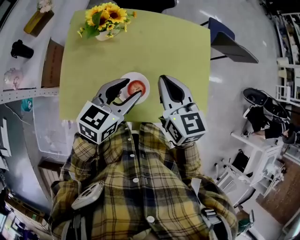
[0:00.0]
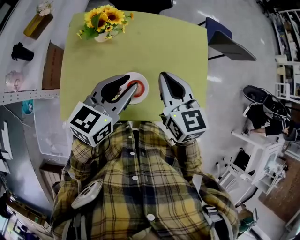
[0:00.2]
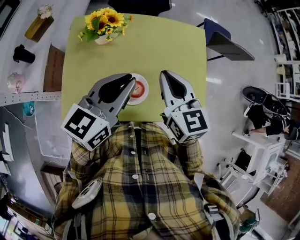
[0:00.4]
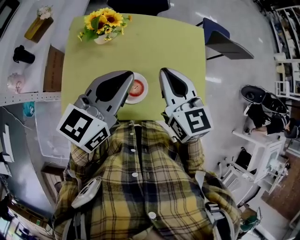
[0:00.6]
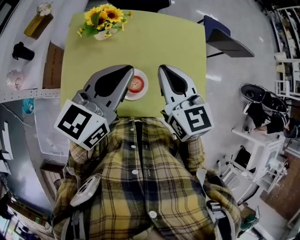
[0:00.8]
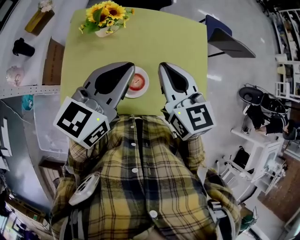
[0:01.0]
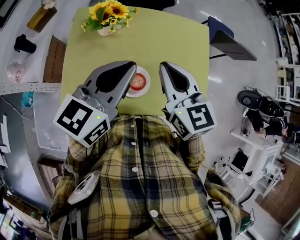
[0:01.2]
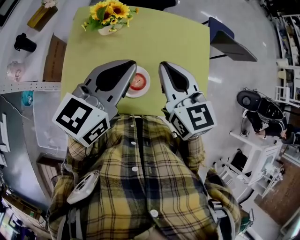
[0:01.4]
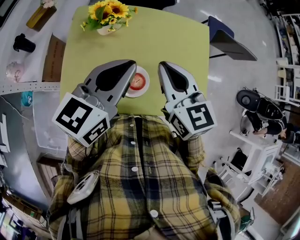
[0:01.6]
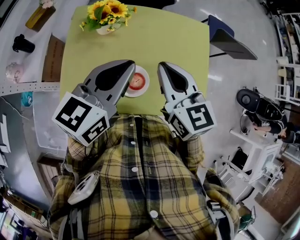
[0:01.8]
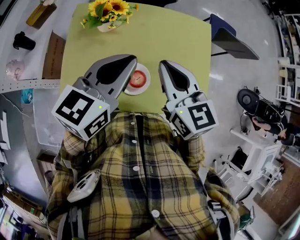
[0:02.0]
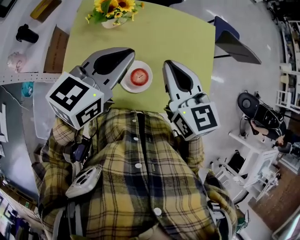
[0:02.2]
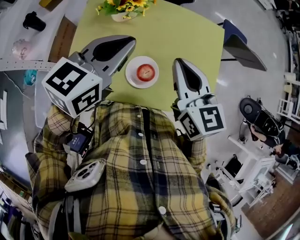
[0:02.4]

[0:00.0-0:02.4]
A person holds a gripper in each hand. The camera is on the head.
0:00.0 to 0:01.2: The left gripper shifts some 15 cm upward, and closes up. The right gripper shifts roughly 5 cm upward.
0:01.2 to 0:02.4: The left gripper moves about 5 cm.

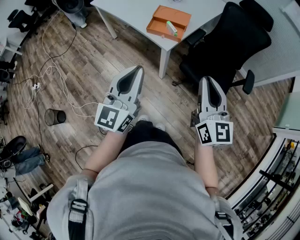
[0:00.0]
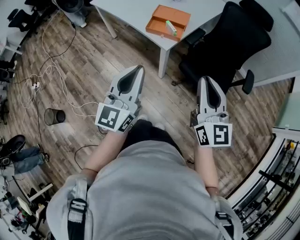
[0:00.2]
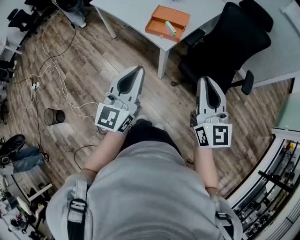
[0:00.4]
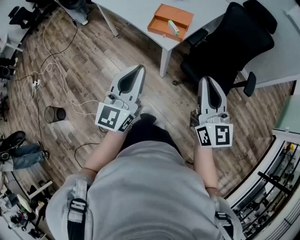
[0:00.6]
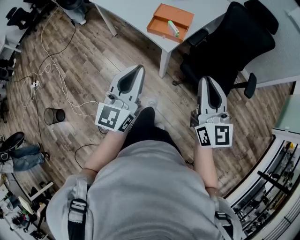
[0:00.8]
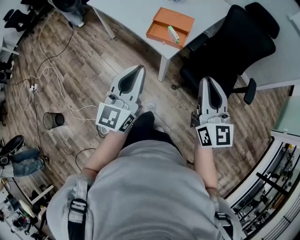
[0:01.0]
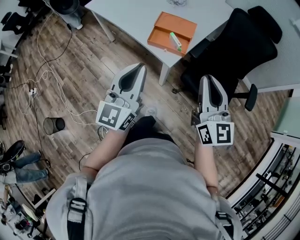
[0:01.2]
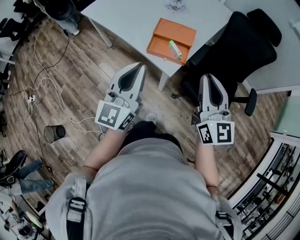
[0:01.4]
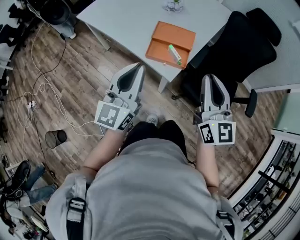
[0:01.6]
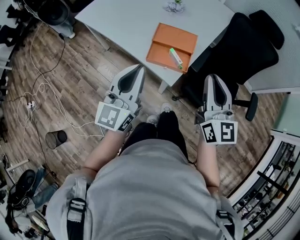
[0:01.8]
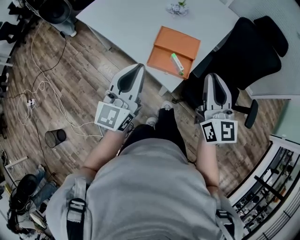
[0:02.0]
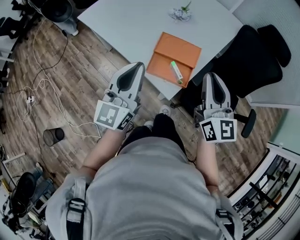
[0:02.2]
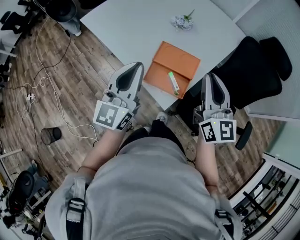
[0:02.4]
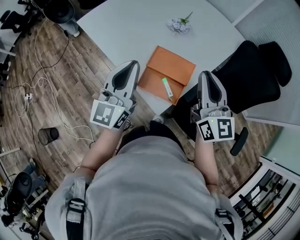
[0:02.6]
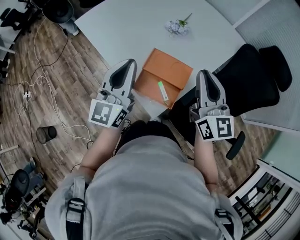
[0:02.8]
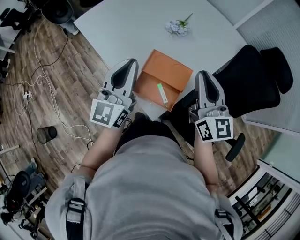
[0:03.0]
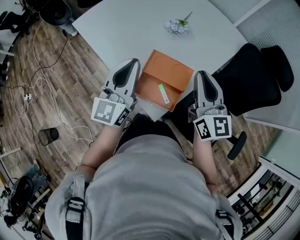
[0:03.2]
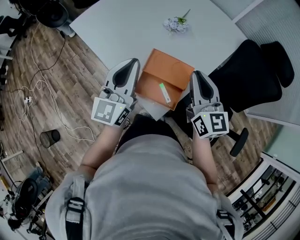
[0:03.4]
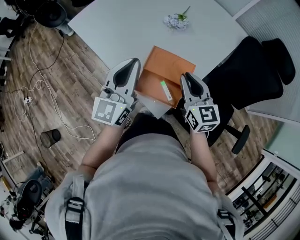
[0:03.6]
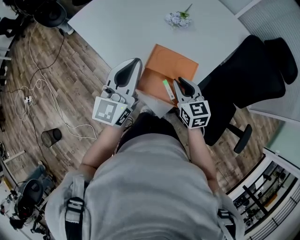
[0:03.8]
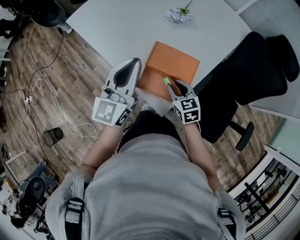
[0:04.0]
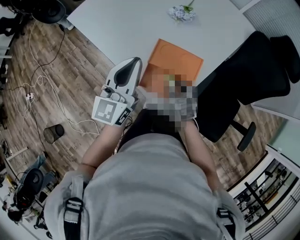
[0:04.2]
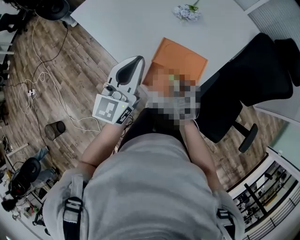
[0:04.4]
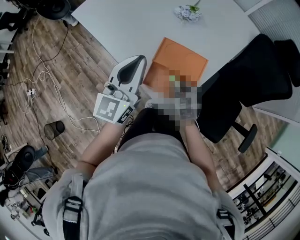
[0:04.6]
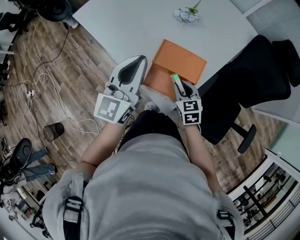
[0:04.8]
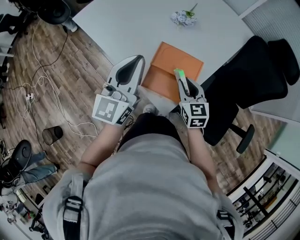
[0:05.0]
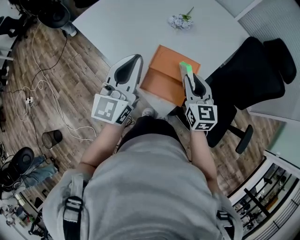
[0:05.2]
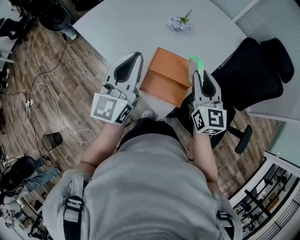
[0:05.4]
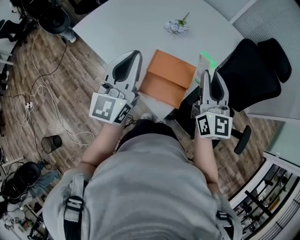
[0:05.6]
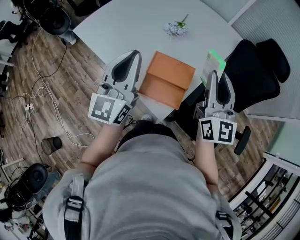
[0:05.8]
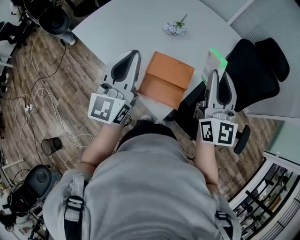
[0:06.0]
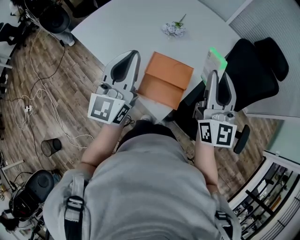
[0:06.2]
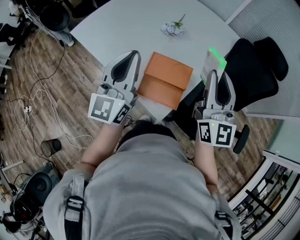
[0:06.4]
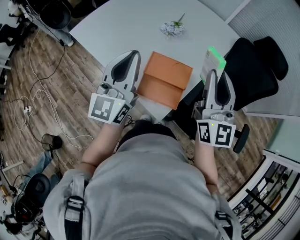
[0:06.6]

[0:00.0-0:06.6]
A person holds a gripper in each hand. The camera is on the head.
0:00.0 to 0:01.6: Both grippers travel together forward, approximately 30 cm.
0:01.6 to 0:03.2: Both grippers travel together forward, about 35 cm.
0:03.2 to 0:05.0: The right gripper heads downward, covering about 20 cm, and changes its angle by roughly 30 degrees.
0:05.0 to 0:06.6: The right gripper shifts about 30 cm upward, and angles its fingers upward, by approximately 40 degrees, while the left gripper shifts roughly 10 cm upward.

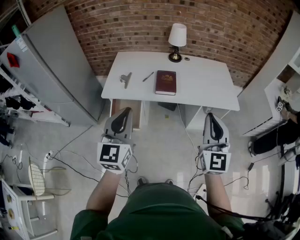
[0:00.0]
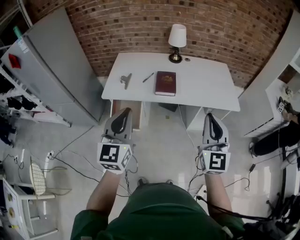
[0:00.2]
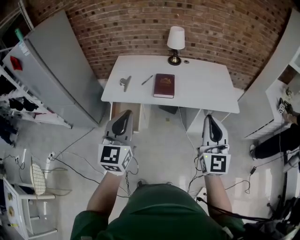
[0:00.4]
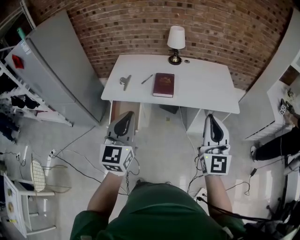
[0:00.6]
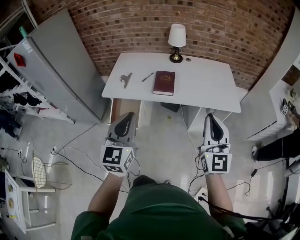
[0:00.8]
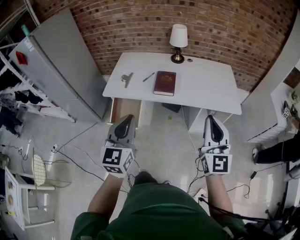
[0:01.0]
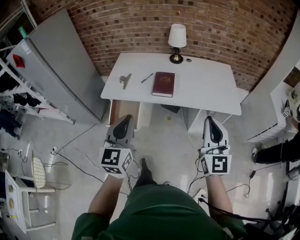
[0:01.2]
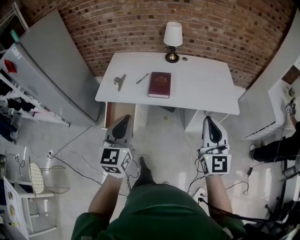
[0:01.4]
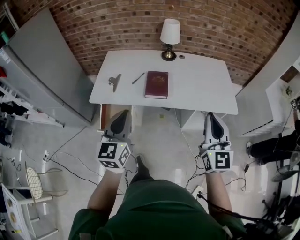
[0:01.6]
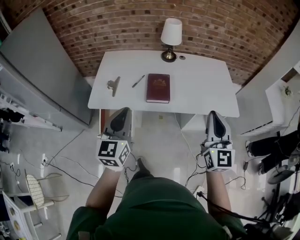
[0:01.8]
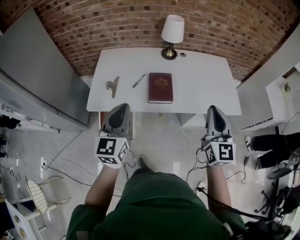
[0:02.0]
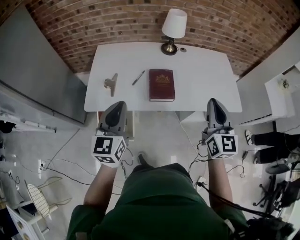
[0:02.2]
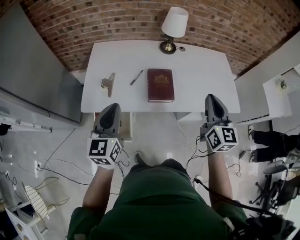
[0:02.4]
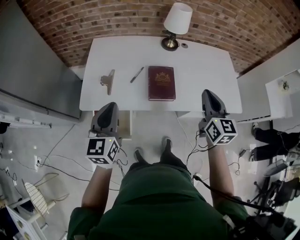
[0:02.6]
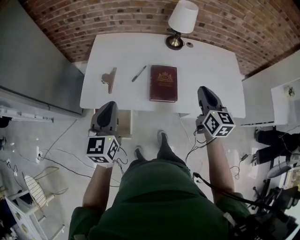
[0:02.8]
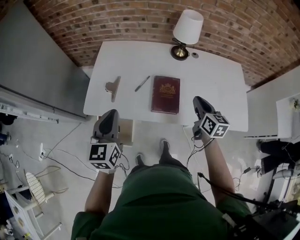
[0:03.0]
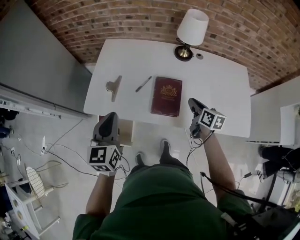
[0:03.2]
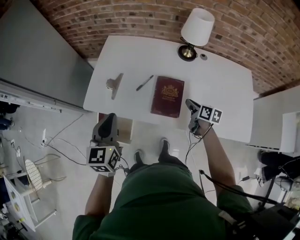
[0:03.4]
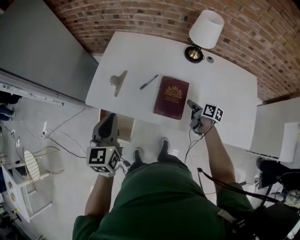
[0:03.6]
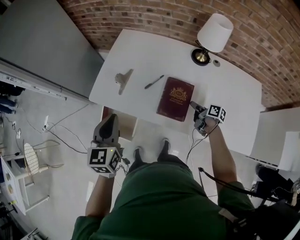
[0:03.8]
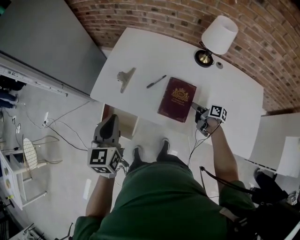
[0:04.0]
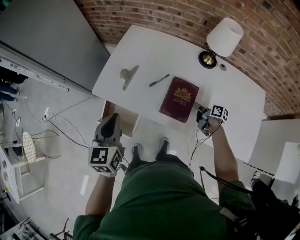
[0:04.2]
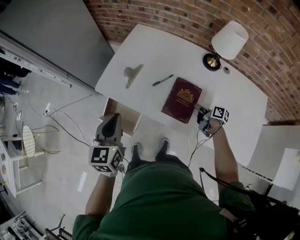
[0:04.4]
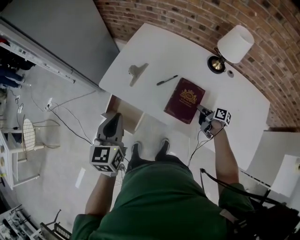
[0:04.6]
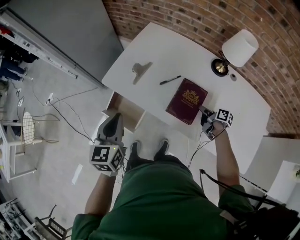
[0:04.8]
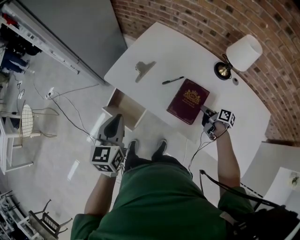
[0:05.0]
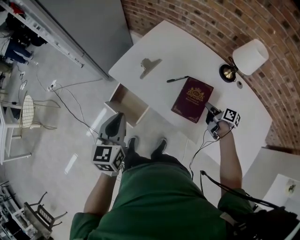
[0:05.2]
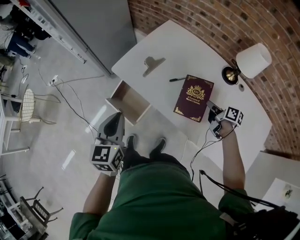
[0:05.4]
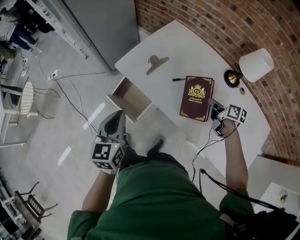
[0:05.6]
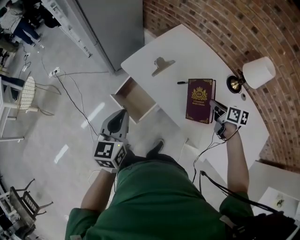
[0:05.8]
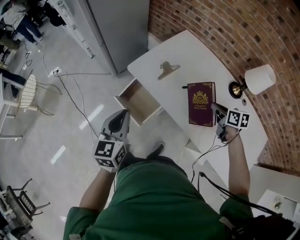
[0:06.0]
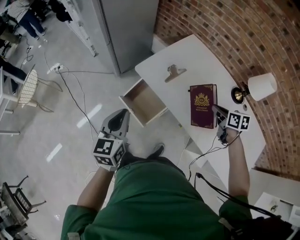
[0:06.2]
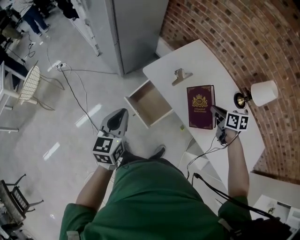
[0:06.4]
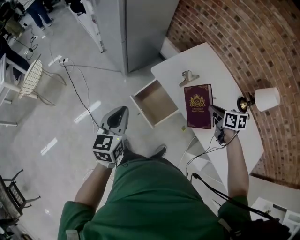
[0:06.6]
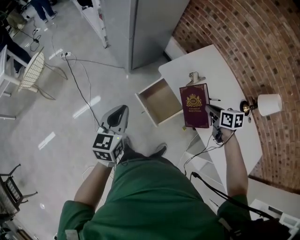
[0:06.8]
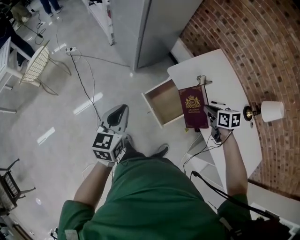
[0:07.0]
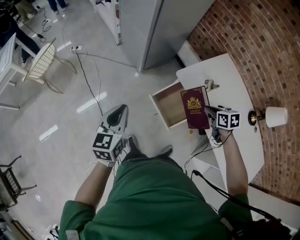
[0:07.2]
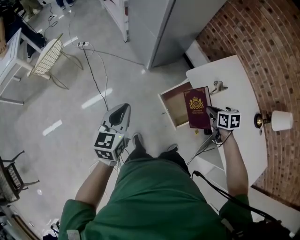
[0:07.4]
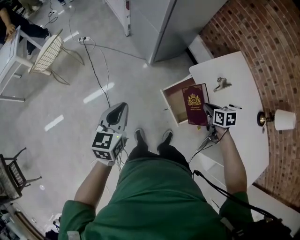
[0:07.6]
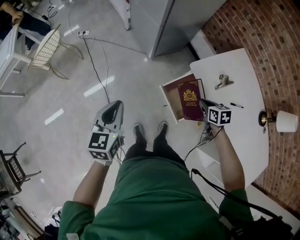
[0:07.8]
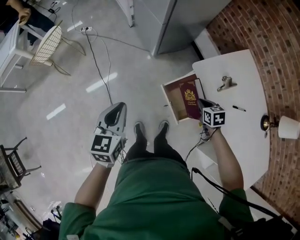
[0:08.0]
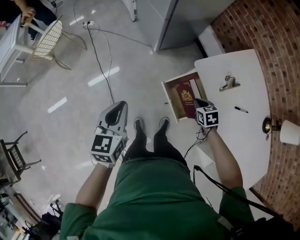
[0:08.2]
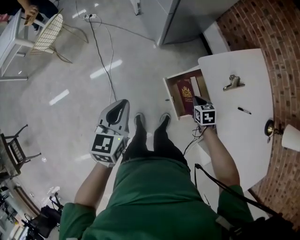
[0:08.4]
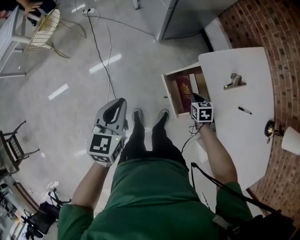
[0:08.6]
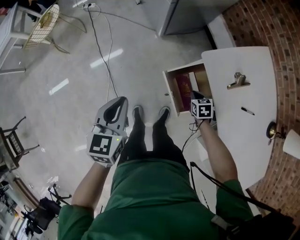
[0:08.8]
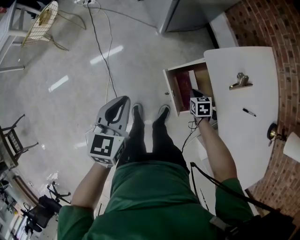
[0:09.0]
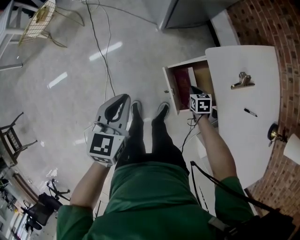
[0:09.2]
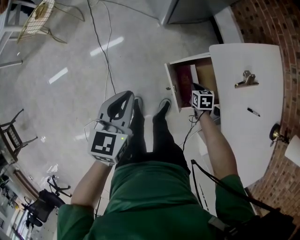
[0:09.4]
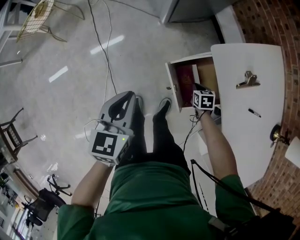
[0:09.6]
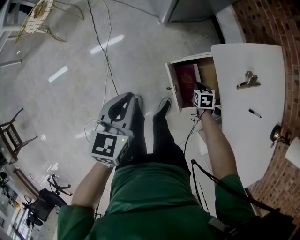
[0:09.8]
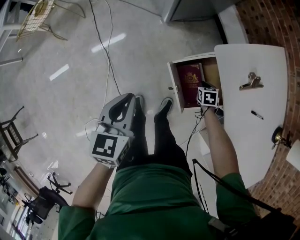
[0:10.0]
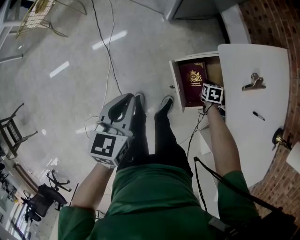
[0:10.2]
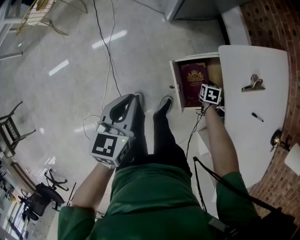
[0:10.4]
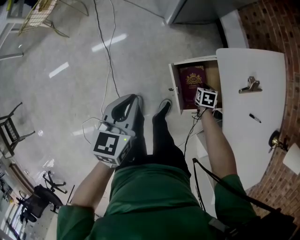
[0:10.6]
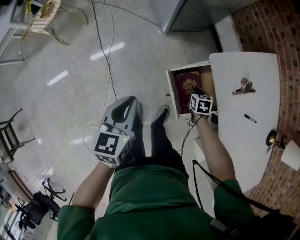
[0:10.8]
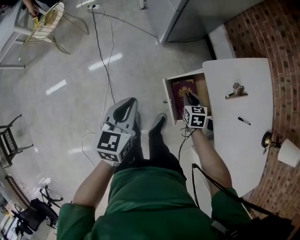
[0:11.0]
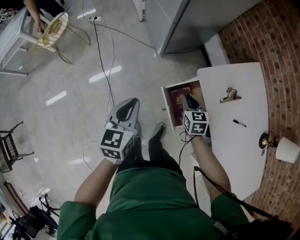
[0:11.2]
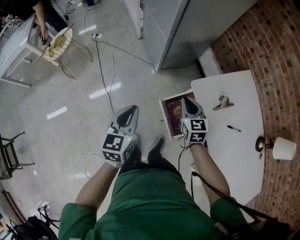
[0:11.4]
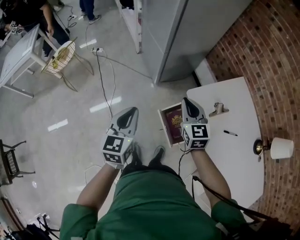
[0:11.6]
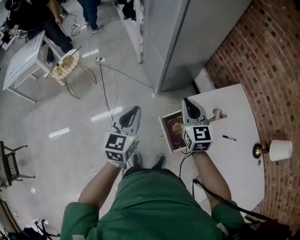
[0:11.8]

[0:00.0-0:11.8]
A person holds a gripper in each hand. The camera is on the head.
0:00.0 to 0:01.4: The left gripper goes some 10 cm to the right and downward; the right gripper moves to the right, about 10 cm.
0:01.4 to 0:03.0: The left gripper goes approximately 30 cm forward and to the left; the right gripper shifts roughly 40 cm forward and downward, and changes its angle by some 40 degrees.
0:03.0 to 0:04.4: The left gripper turns by roughly 20 degrees; the right gripper shifts about 20 cm downward, and rotates about 50 degrees.
0:04.4 to 0:06.0: The right gripper moves upward, to the left and forward, about 20 cm, and rolls counterclockwise, seen from behind, by approximately 40 degrees, while the left gripper is displaced to the left by roughly 15 cm.
0:06.0 to 0:07.4: Both grippers move to the left, some 30 cm. The right gripper swivels roughly 30 degrees.
0:07.4 to 0:08.8: The right gripper shifts roughly 25 cm downward; the left gripper travels downward by about 10 cm.
0:08.8 to 0:10.4: The left gripper heads downward, covering about 5 cm. Meanwhile the right gripper heads downward, covering about 10 cm, and opens up.
0:10.4 to 0:11.8: The left gripper heads upward, covering approximately 20 cm, and turns by approximately 20 degrees. Meanwhile the right gripper travels upward by approximately 50 cm, points its fingers some 60 degrees further upward, and closes.

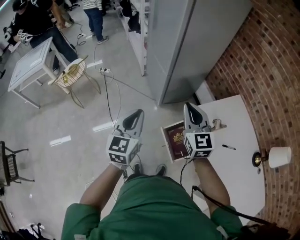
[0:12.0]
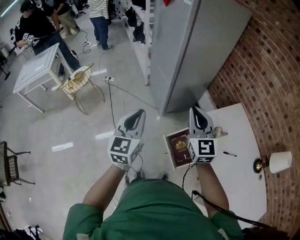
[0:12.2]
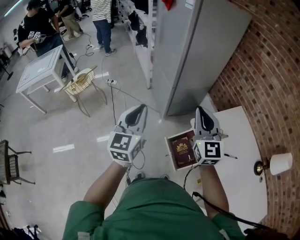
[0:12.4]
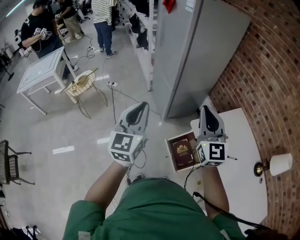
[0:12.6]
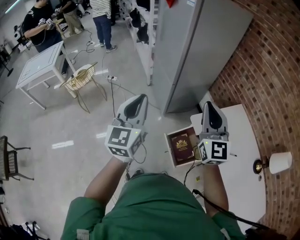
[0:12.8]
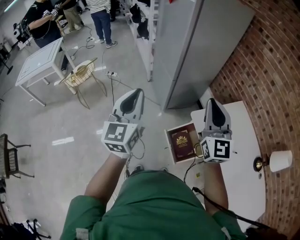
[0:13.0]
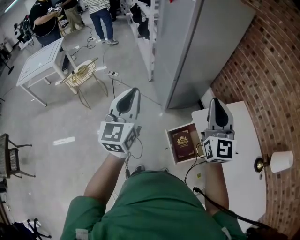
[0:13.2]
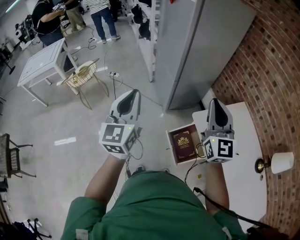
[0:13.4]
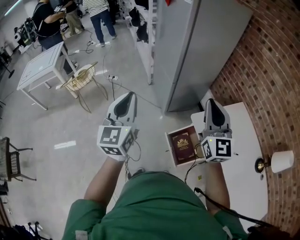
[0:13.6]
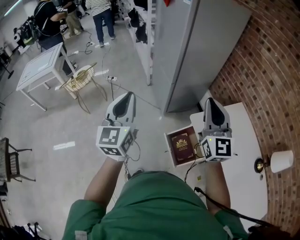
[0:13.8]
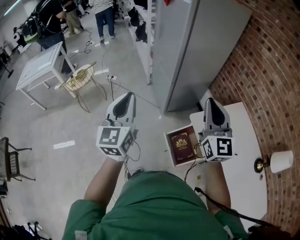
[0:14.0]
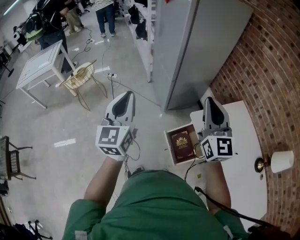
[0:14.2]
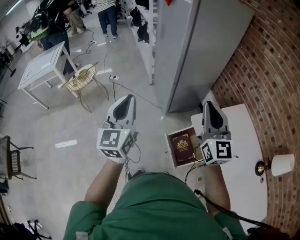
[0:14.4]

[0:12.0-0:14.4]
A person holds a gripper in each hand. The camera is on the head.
0:12.0 to 0:13.2: The right gripper goes roughly 15 cm upward and to the right, while the left gripper shifts approximately 10 cm upward.
0:13.2 to 0:14.4: The grippers move only a little.
